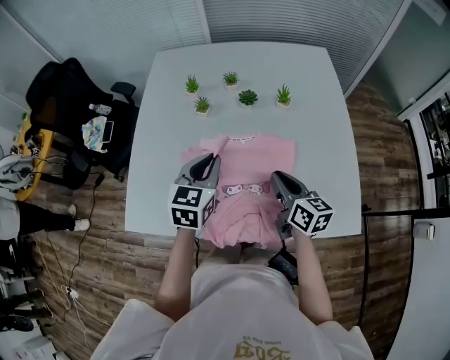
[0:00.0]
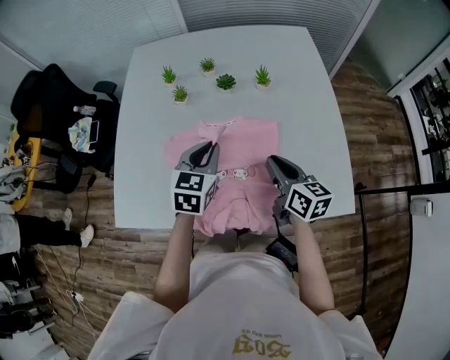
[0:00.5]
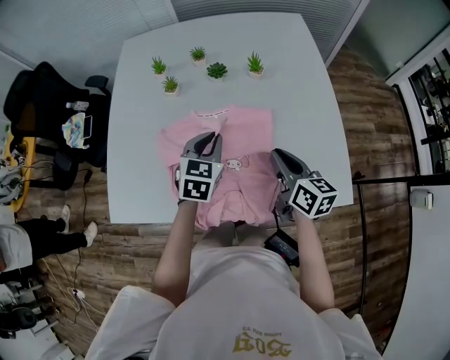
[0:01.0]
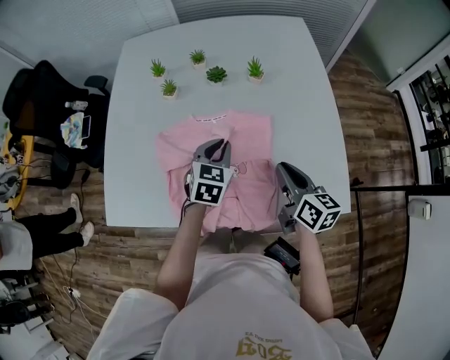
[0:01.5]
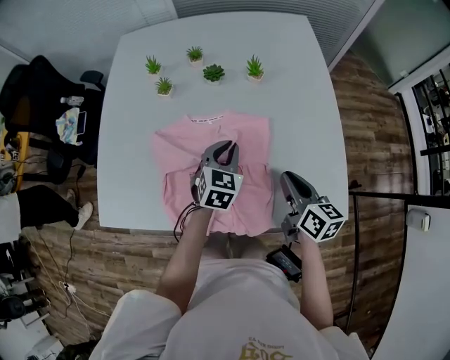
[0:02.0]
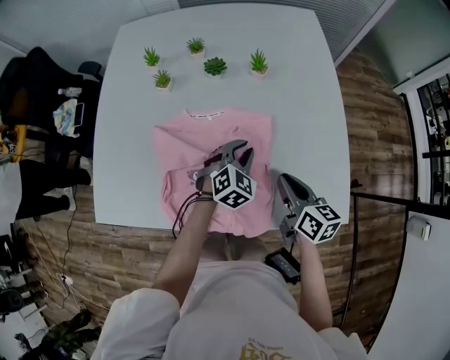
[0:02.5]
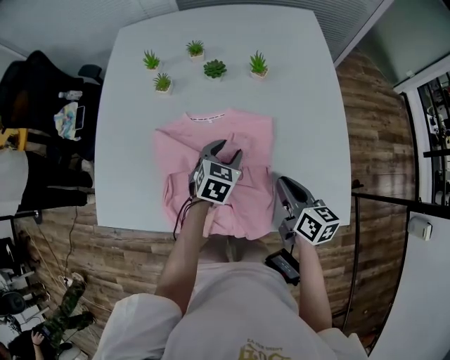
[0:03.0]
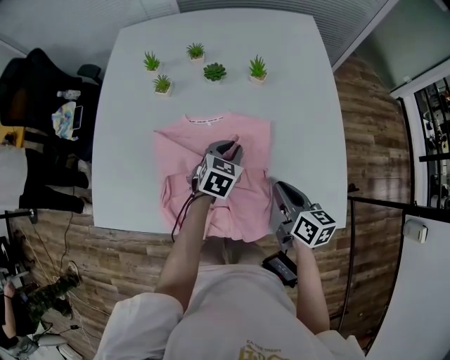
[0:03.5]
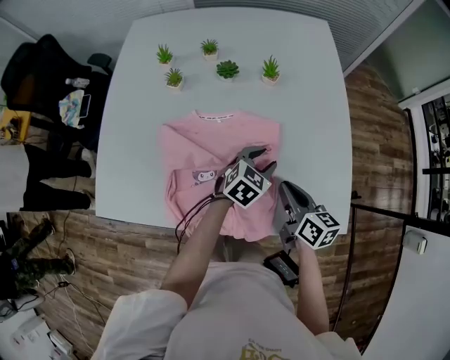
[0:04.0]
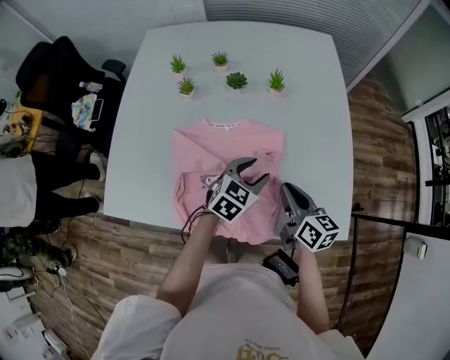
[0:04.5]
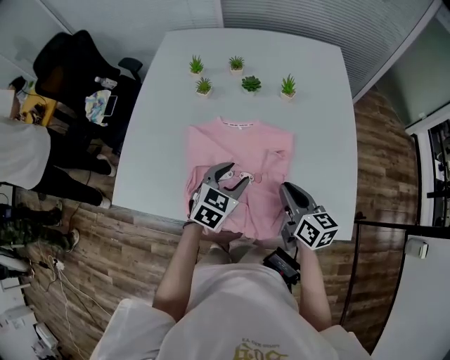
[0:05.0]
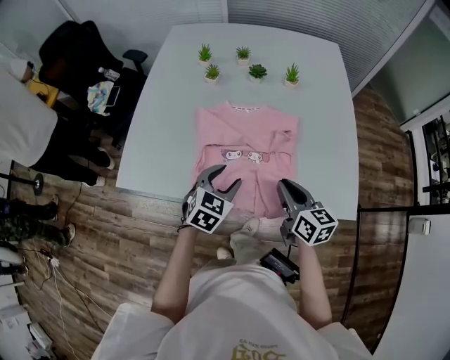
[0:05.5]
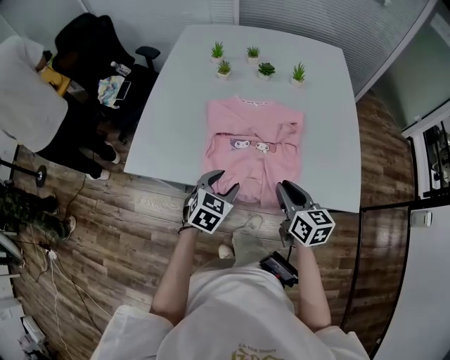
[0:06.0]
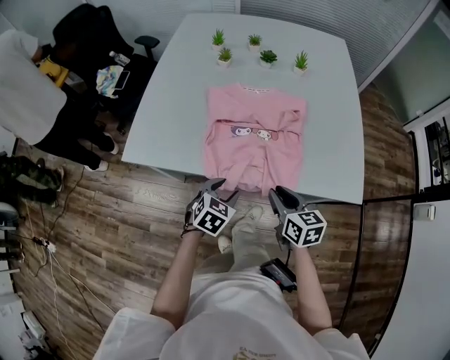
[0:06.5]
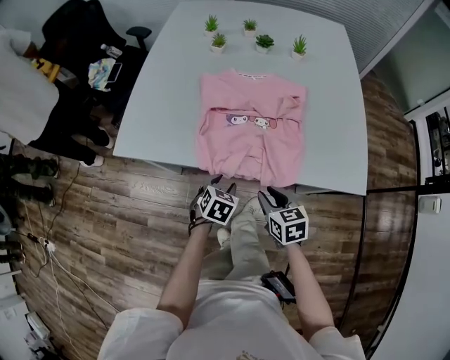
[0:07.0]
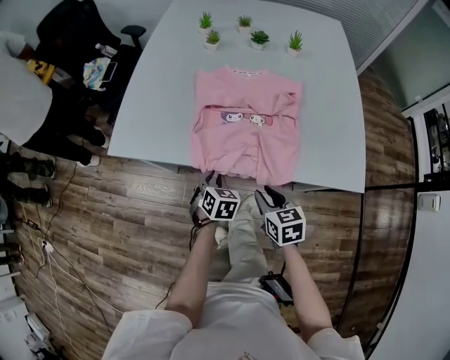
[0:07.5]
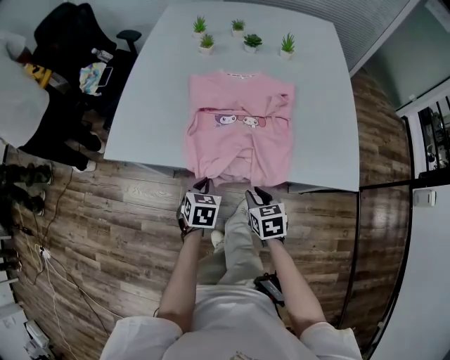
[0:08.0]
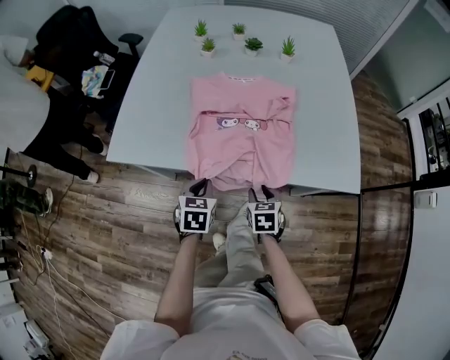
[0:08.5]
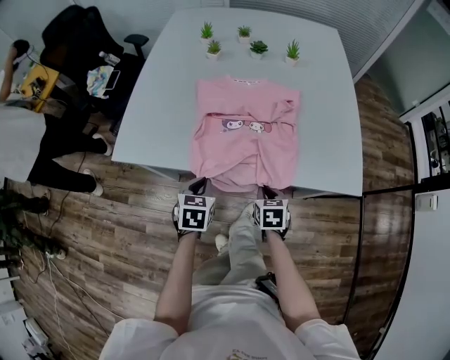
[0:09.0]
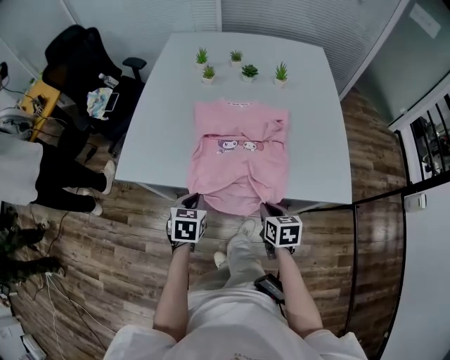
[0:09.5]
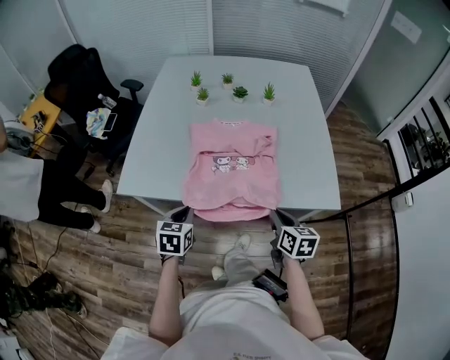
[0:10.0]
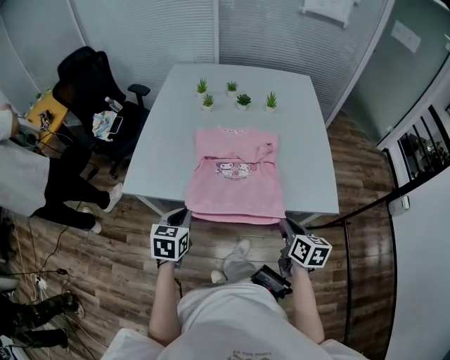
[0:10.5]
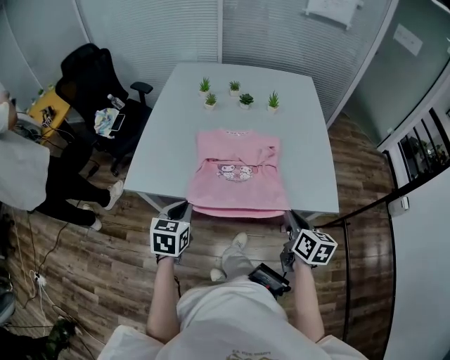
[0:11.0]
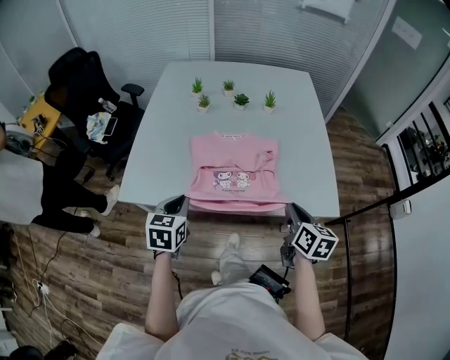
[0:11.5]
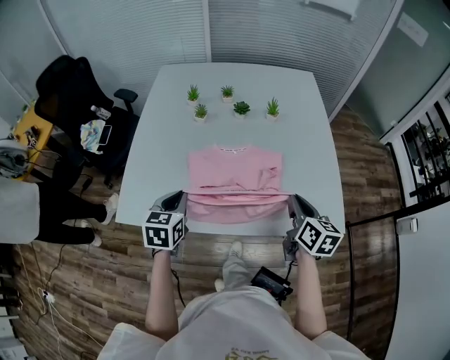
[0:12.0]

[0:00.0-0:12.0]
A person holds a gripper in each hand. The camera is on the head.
0:00.0 to 0:02.0: The left gripper heads to the right and downward, covering about 20 cm, while the right gripper moves to the right, approximately 10 cm.
0:02.0 to 0:04.0: The left gripper swings left and right, roughly 10 cm each way, with 2 reversals, rotates about 20 degrees, and opens.
0:04.0 to 0:06.0: The left gripper shifts roughly 30 cm backward and to the left, while the right gripper goes about 20 cm backward and to the left.
0:06.0 to 0:08.0: The left gripper is displaced downward by about 10 cm, swivels roughly 20 degrees, and closes; the right gripper heads downward and backward, covering some 20 cm, and rotates roughly 30 degrees.
0:08.0 to 0:10.0: The right gripper goes roughly 15 cm upward and to the right, and changes its angle by about 20 degrees; the left gripper moves upward and to the left, some 15 cm.
0:10.0 to 0:12.0: Both grippers move forward and upward, some 20 cm.

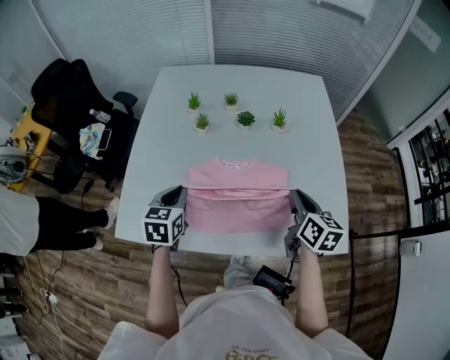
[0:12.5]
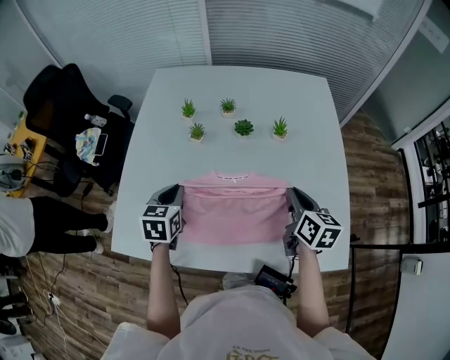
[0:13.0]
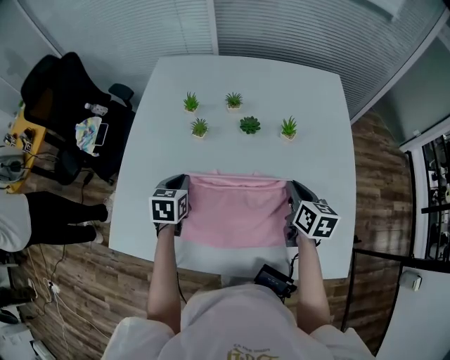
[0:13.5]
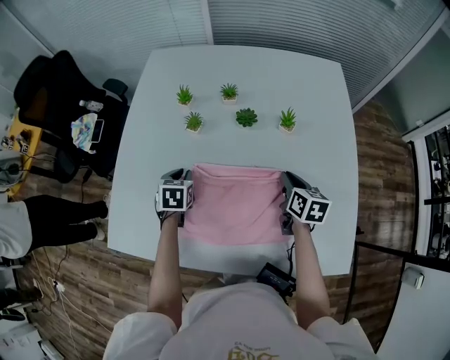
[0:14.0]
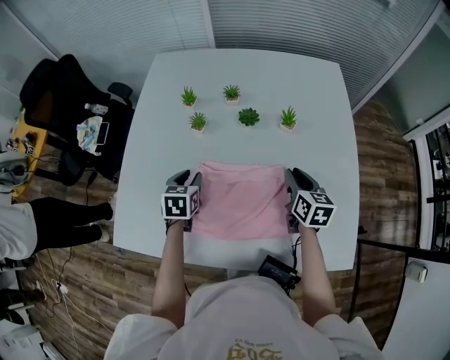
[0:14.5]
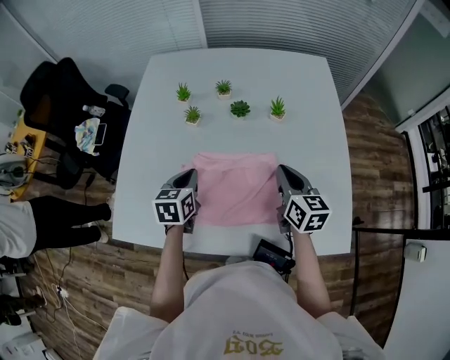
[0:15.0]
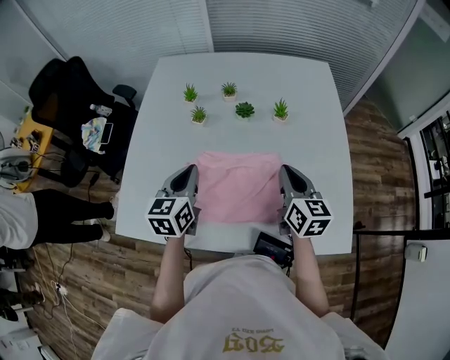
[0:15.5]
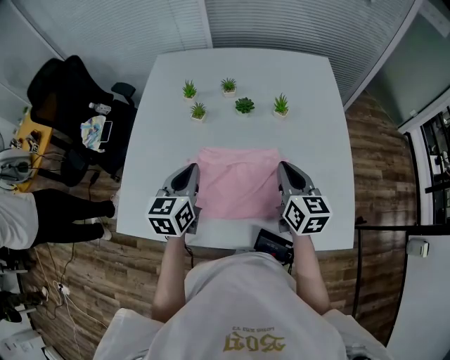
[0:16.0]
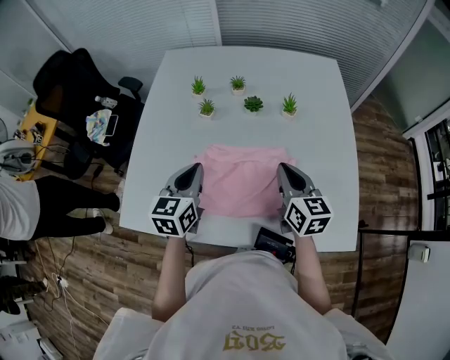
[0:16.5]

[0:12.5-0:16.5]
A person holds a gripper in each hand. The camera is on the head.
0:12.5 to 0:14.5: Both grippers move forward and downward, about 15 cm. The left gripper opens.
0:14.5 to 0:16.5: The right gripper is displaced upward, backward and to the left by some 15 cm. The left gripper moves upward and backward, about 15 cm, swivels roughly 30 degrees, and closes its fingers.

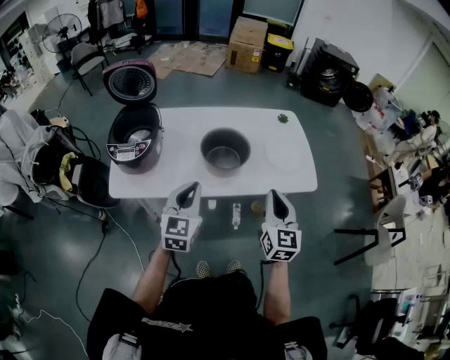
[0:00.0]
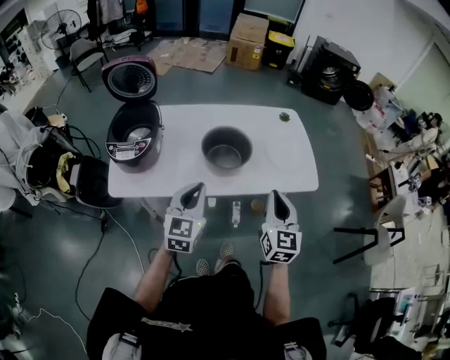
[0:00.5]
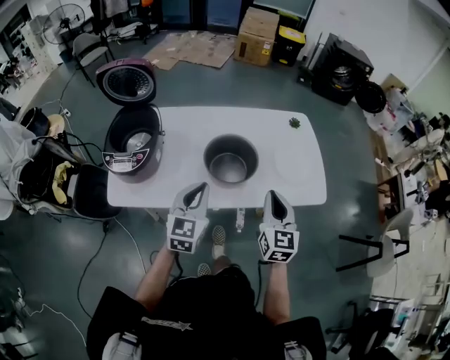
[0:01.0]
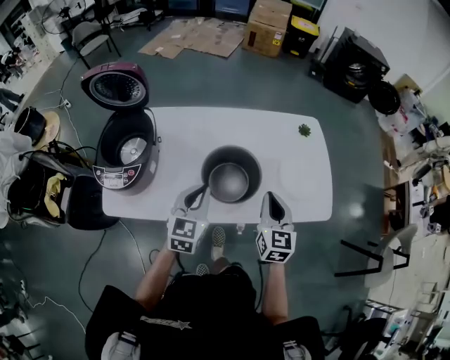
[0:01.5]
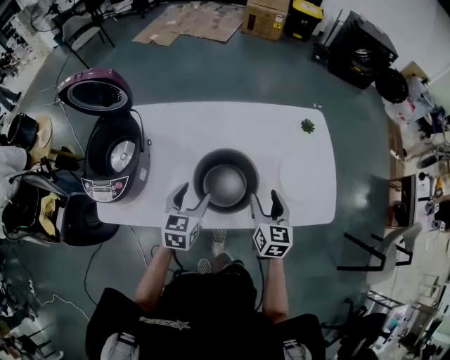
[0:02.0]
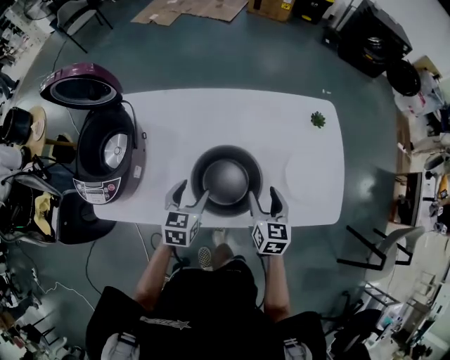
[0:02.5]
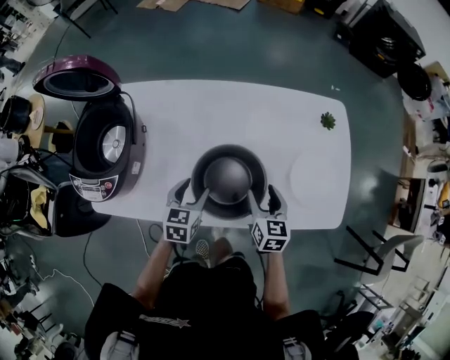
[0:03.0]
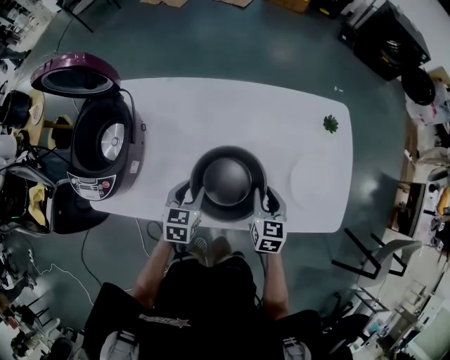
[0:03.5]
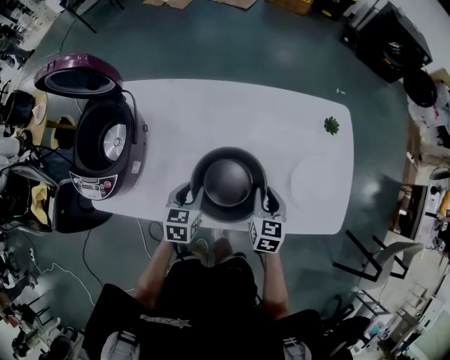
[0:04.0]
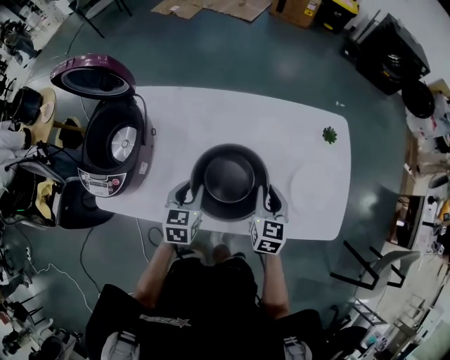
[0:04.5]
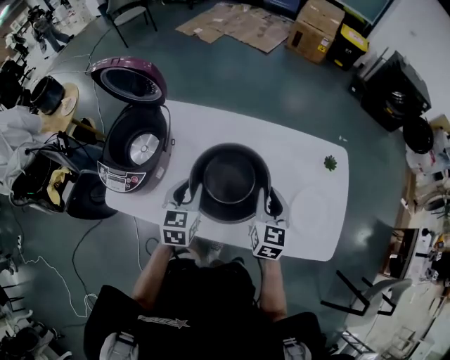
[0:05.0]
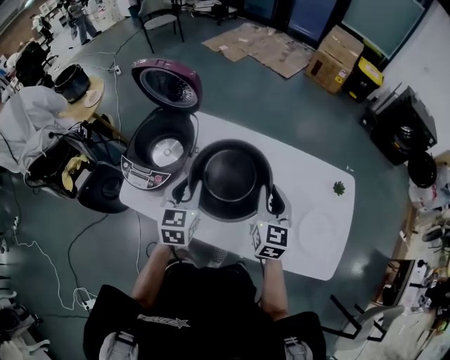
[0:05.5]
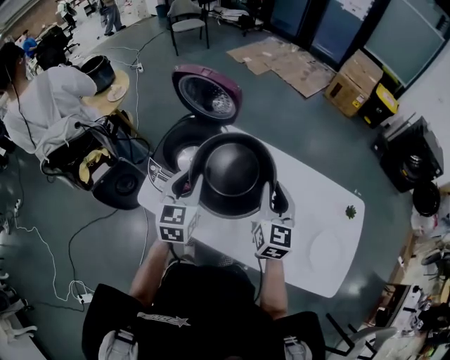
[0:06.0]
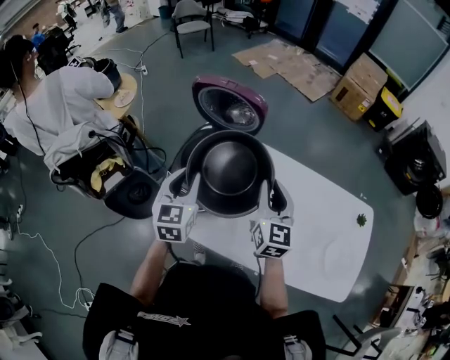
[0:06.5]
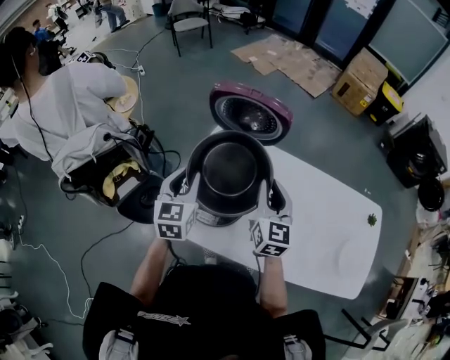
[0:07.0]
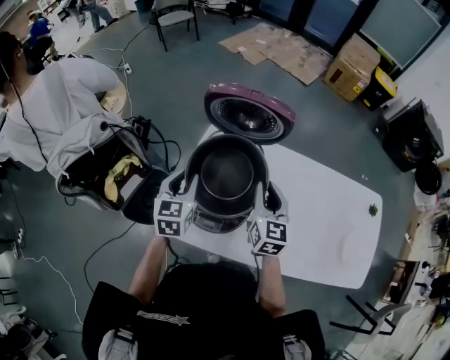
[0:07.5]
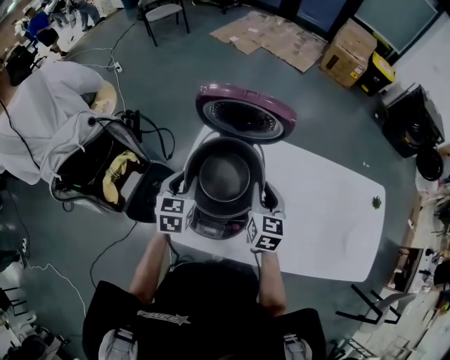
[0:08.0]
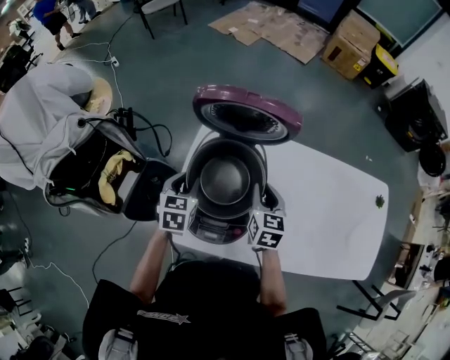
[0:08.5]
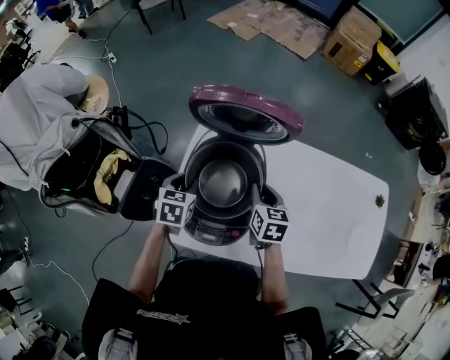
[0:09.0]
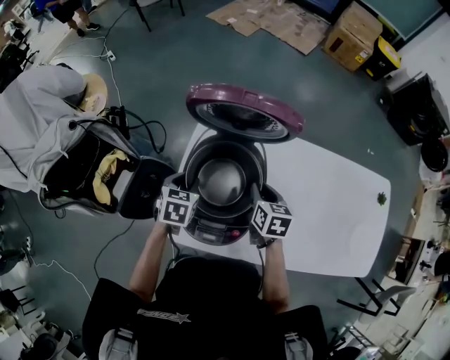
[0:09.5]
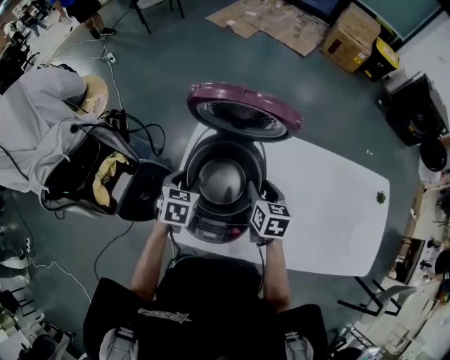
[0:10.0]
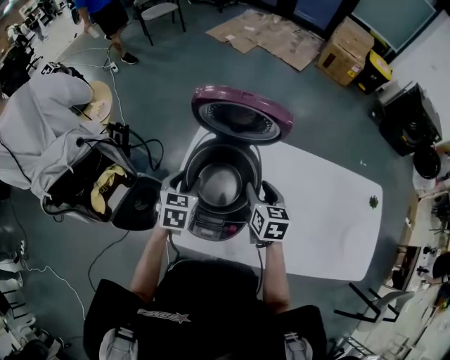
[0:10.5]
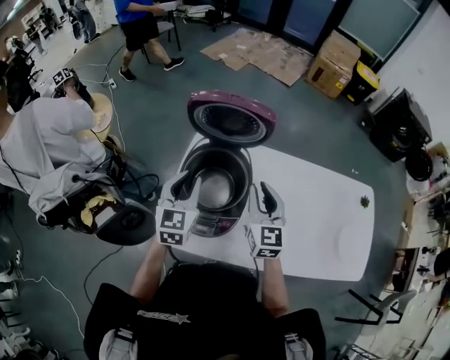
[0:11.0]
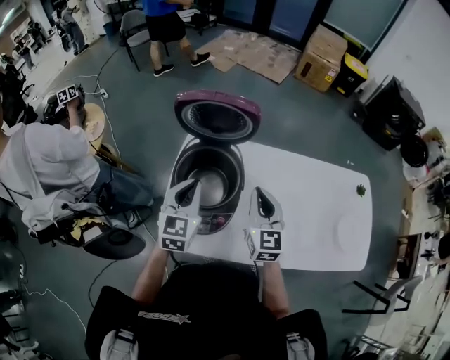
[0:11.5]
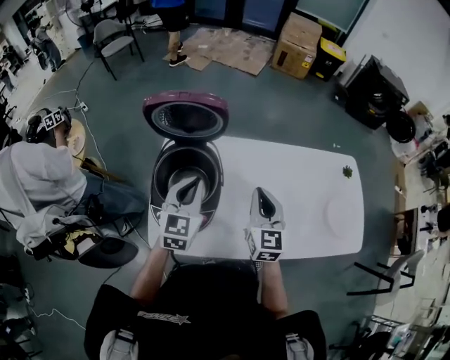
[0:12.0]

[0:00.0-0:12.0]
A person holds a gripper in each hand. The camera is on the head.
0:00.0 to 0:02.0: The two grippers go roughly 30 cm forward and downward. The left gripper changes its angle by approximately 20 degrees, and opens; the right gripper changes its angle by some 20 degrees, and opens.
0:02.0 to 0:04.0: The grippers both shift downward by some 10 cm. The left gripper closes up; the right gripper closes its fingers.
0:04.0 to 0:06.0: Both grippers move upward and to the left, some 35 cm. The left gripper changes its angle by roughly 40 degrees; the right gripper changes its angle by approximately 30 degrees.
0:06.0 to 0:08.0: The two grippers go approximately 25 cm to the left, forward and downward.
0:08.0 to 0:10.0: Both grippers travel together downward, some 10 cm. The right gripper opens its fingers.
0:10.0 to 0:12.0: The left gripper heads upward and to the right, covering some 20 cm, points its fingers roughly 30 degrees further upward, and closes its fingers. The right gripper is displaced upward, to the right and backward by some 20 cm, swivels about 40 degrees, and closes up.
